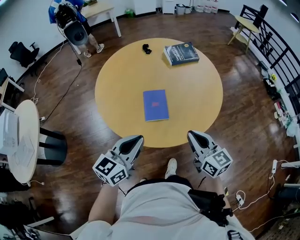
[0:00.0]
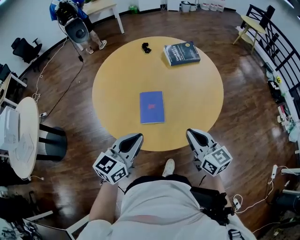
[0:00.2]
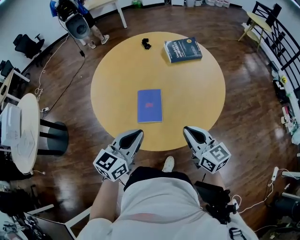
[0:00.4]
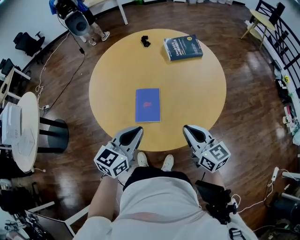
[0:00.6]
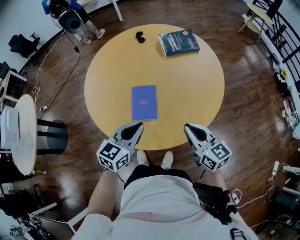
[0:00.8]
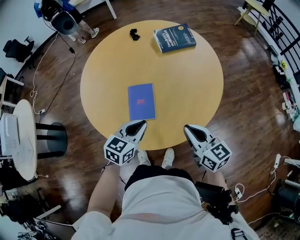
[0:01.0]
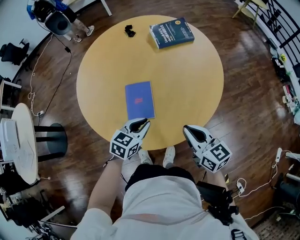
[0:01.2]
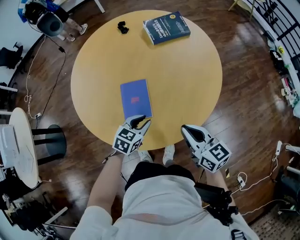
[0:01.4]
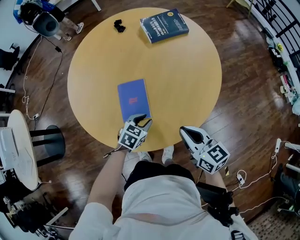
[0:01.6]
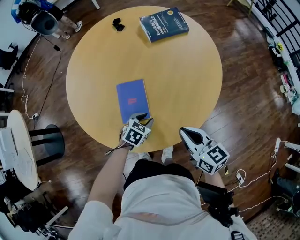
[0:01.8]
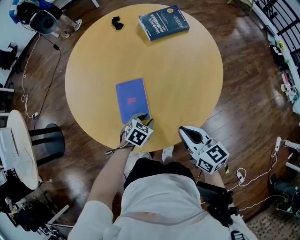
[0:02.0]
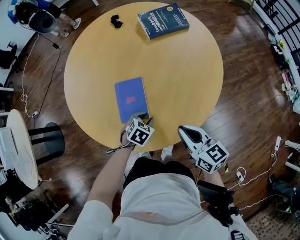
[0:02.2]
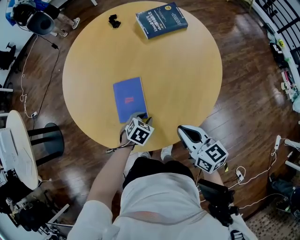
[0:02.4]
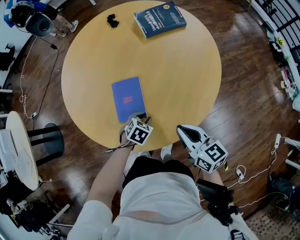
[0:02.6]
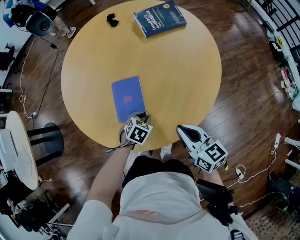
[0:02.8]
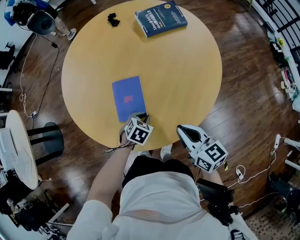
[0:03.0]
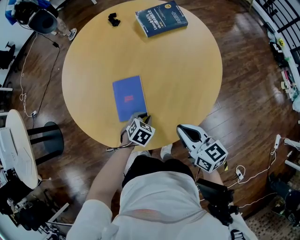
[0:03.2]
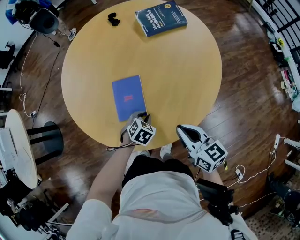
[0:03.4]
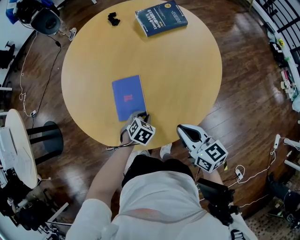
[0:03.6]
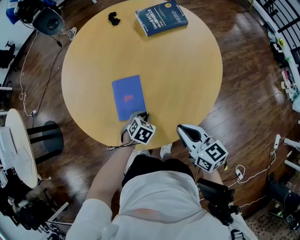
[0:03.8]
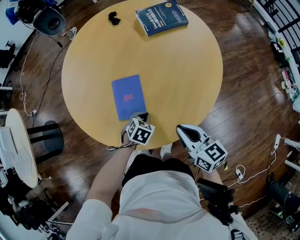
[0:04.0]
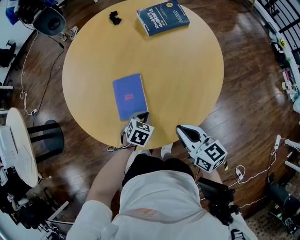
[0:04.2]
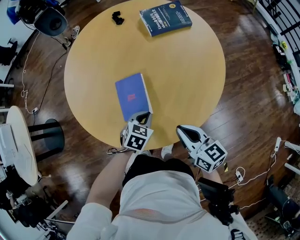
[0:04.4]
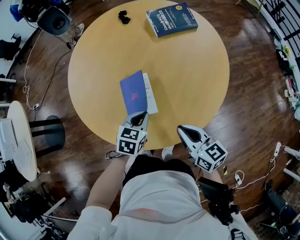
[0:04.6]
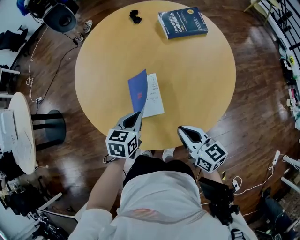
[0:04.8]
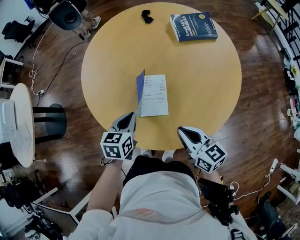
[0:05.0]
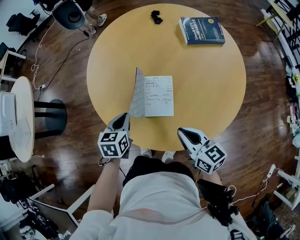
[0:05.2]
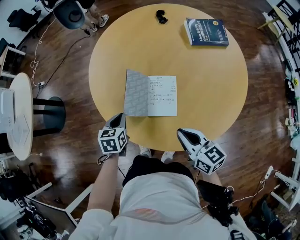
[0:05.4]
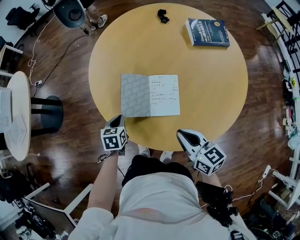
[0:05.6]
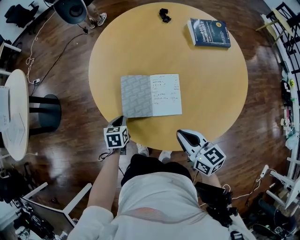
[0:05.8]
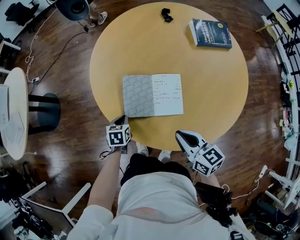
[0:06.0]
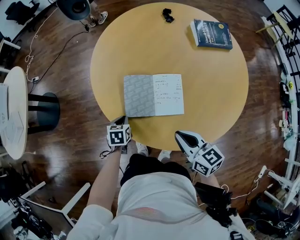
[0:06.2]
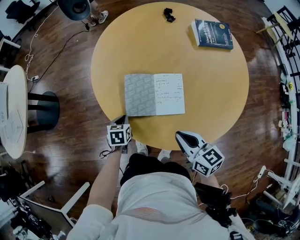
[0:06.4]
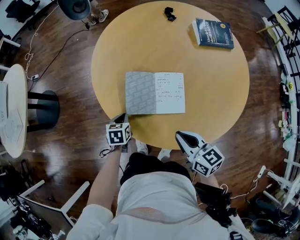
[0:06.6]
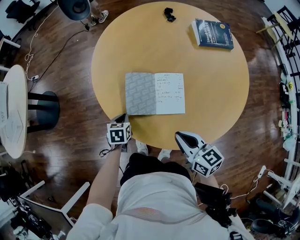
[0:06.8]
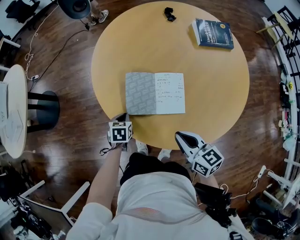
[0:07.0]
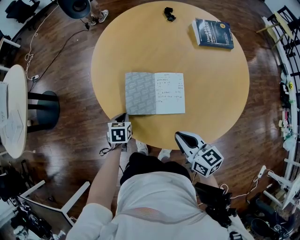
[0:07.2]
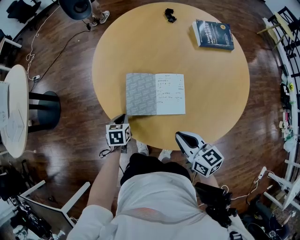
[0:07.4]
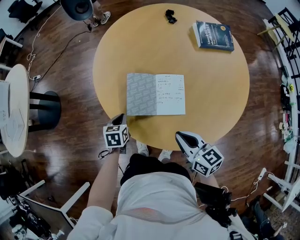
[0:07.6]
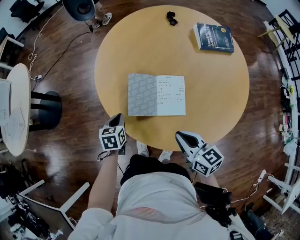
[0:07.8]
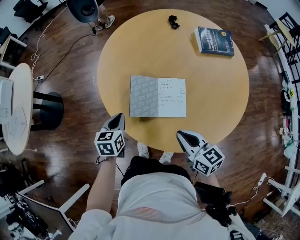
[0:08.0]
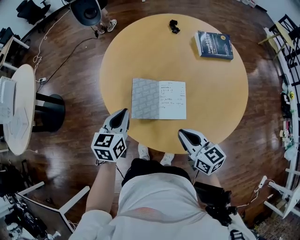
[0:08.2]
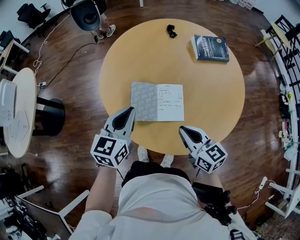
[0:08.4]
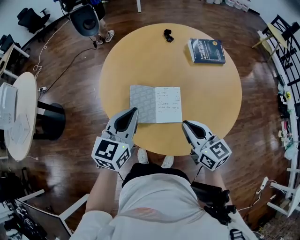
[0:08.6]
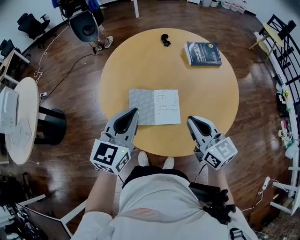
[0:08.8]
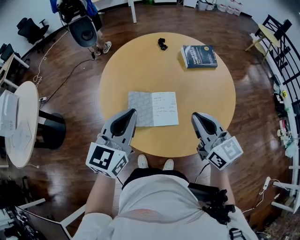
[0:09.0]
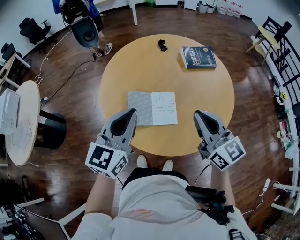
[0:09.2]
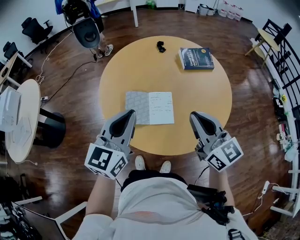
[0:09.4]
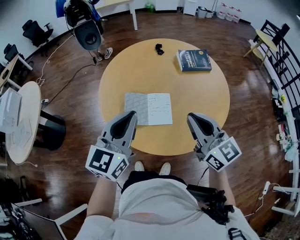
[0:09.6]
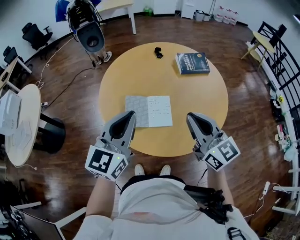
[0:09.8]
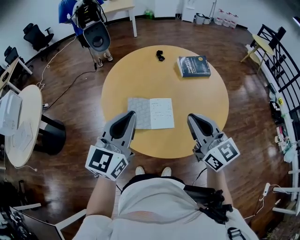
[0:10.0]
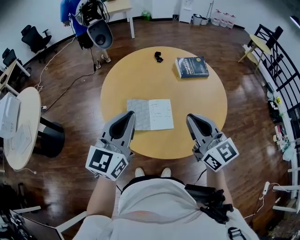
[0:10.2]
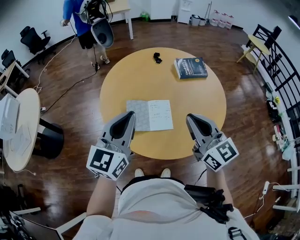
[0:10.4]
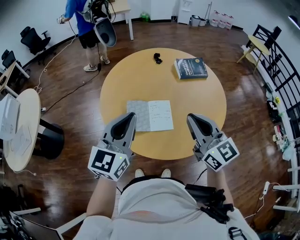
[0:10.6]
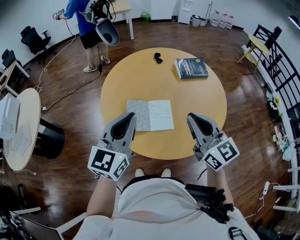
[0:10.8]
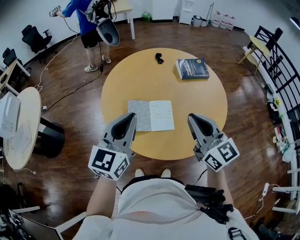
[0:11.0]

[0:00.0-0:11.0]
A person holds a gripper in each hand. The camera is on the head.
0:00.0 to 0:01.6: The left gripper shifts approximately 35 cm downward, forward and to the right, angles its fingers downward, by approximately 40 degrees, and opens; the right gripper goes some 15 cm downward, forward and to the right.
0:01.6 to 0:03.2: The grippers move only a little.
0:03.2 to 0:04.8: The left gripper shifts roughly 15 cm upward and to the left, and swivels some 40 degrees.
0:04.8 to 0:06.2: The left gripper goes approximately 25 cm to the left and downward, and changes its angle by some 30 degrees. The right gripper goes approximately 15 cm to the left.
0:06.2 to 0:07.8: The left gripper travels upward by some 5 cm.
0:07.8 to 0:09.4: The left gripper moves upward, about 35 cm, and points its fingers about 40 degrees further upward; the right gripper travels upward by roughly 25 cm, and rotates approximately 30 degrees.
0:09.4 to 0:11.0: The grippers make only small movements.

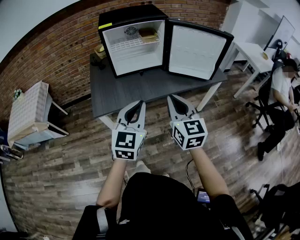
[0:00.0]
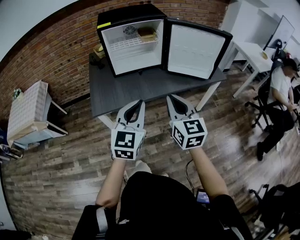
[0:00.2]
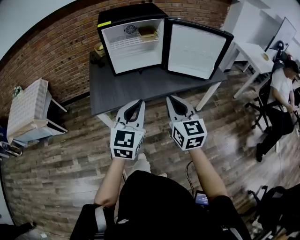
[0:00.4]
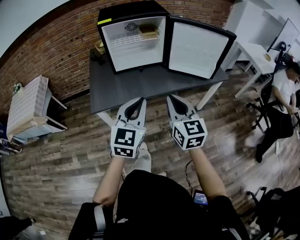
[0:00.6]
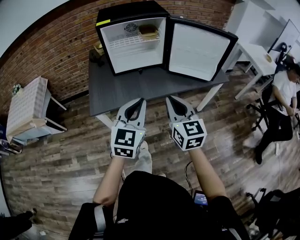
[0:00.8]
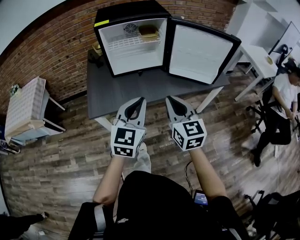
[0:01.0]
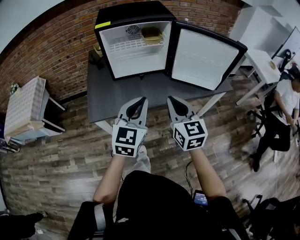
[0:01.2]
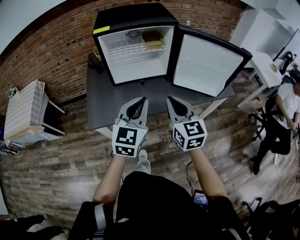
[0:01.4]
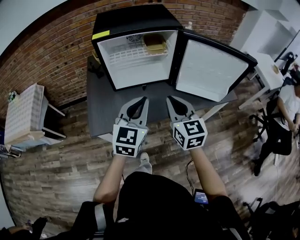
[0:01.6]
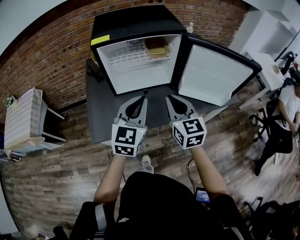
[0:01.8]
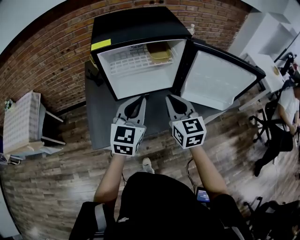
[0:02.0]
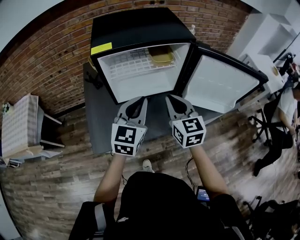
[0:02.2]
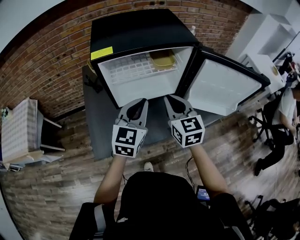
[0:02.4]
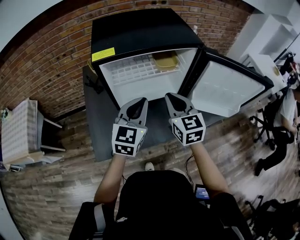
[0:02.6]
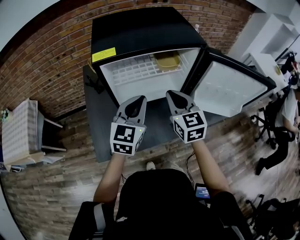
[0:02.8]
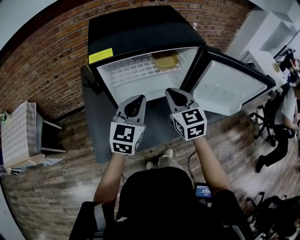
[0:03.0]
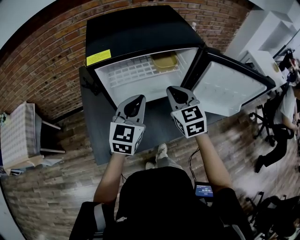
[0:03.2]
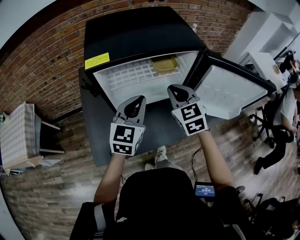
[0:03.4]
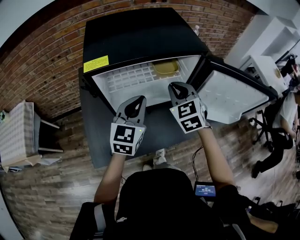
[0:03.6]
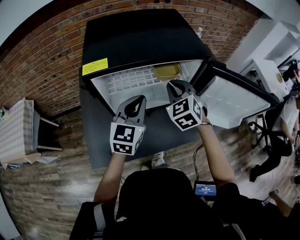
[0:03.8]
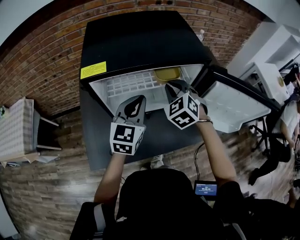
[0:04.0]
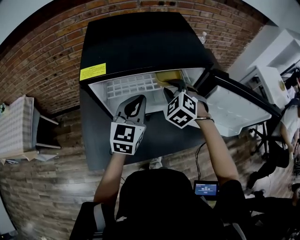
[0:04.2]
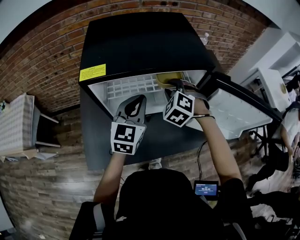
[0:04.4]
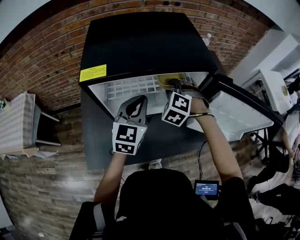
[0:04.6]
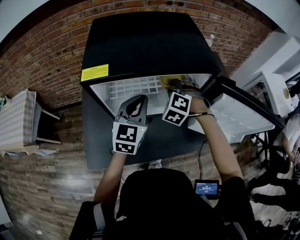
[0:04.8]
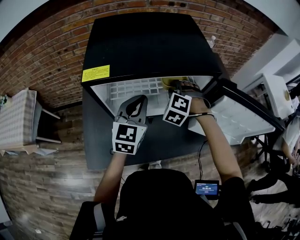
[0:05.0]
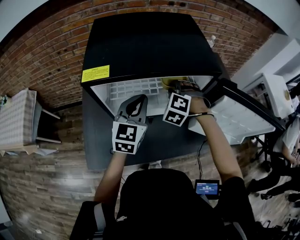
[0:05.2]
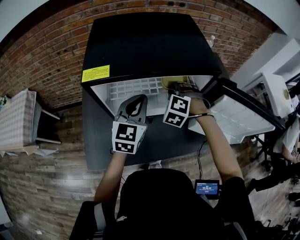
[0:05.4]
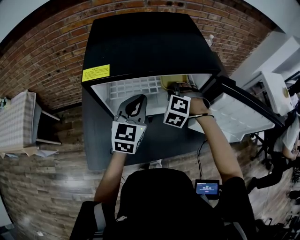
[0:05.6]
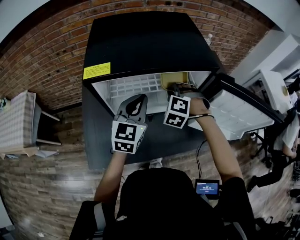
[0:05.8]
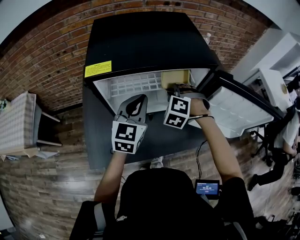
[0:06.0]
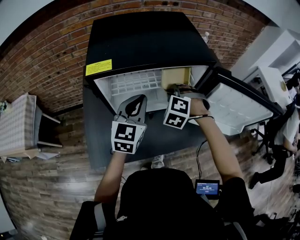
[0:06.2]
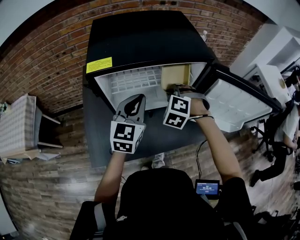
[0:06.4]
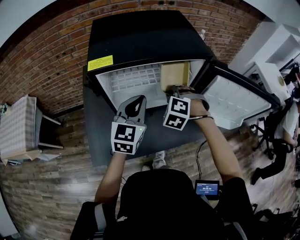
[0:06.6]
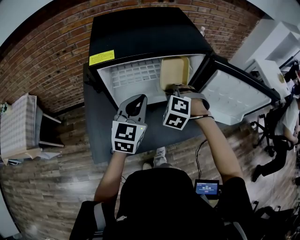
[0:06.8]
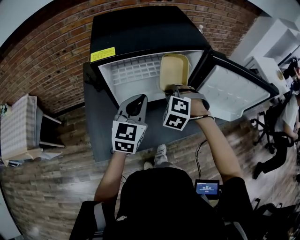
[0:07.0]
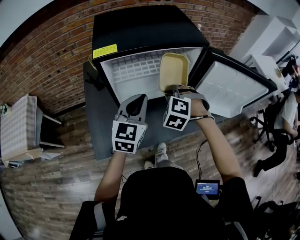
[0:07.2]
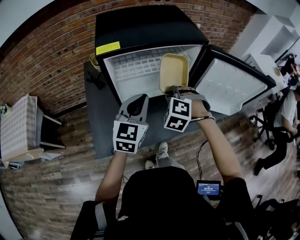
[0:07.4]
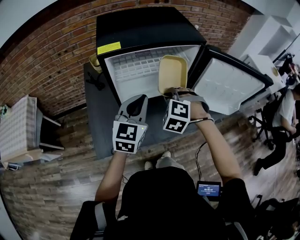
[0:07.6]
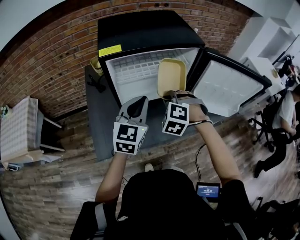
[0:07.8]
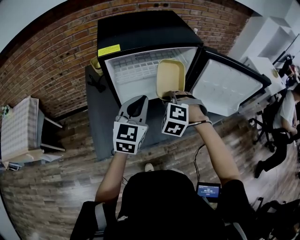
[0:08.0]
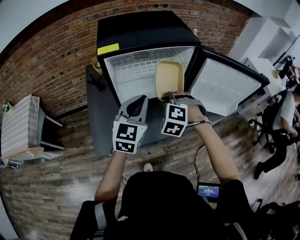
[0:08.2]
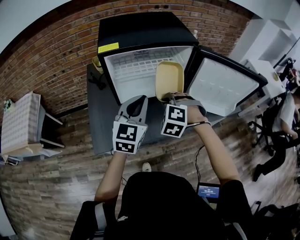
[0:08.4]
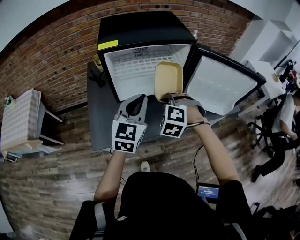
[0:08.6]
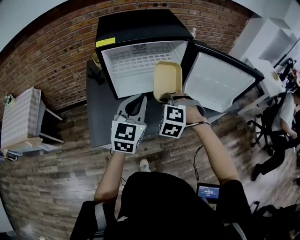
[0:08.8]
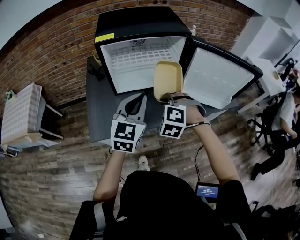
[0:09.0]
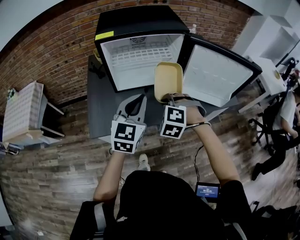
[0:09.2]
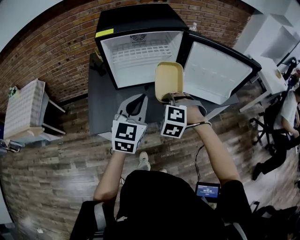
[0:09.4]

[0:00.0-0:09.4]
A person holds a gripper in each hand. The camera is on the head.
0:00.0 to 0:01.6: Both grippers move forward, roughly 20 cm.
0:01.6 to 0:03.2: Both grippers travel together forward, roughly 20 cm.
0:03.2 to 0:04.8: The right gripper moves forward and downward, roughly 15 cm, rotates around the line of its fingers by approximately 50 degrees, counterclockwise from behind, and opens; the left gripper goes roughly 10 cm forward.
0:04.8 to 0:06.2: The right gripper goes about 5 cm backward, and closes.
0:06.2 to 0:07.8: Both grippers travel together backward, roughly 15 cm.
0:07.8 to 0:09.4: Both grippers move backward and to the right, about 15 cm.

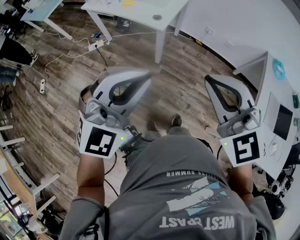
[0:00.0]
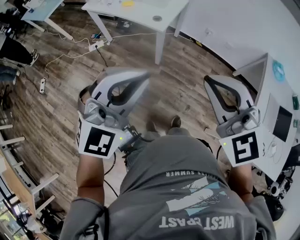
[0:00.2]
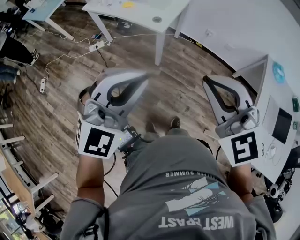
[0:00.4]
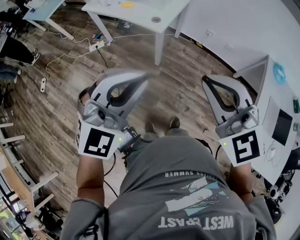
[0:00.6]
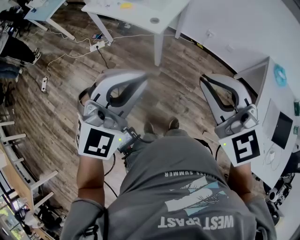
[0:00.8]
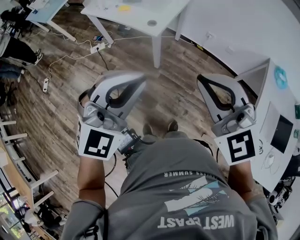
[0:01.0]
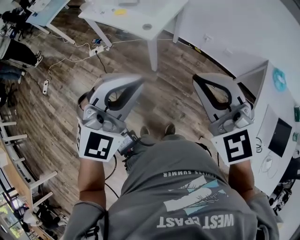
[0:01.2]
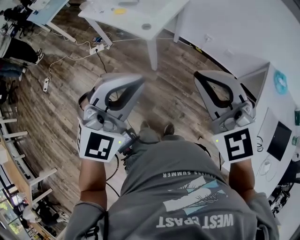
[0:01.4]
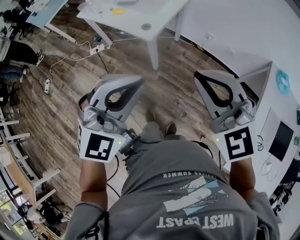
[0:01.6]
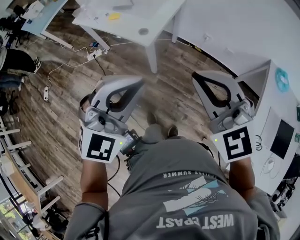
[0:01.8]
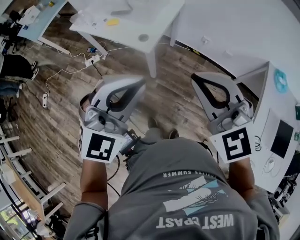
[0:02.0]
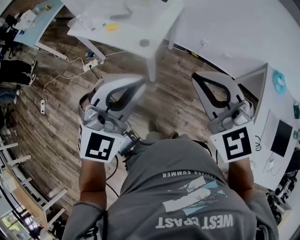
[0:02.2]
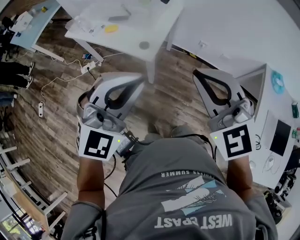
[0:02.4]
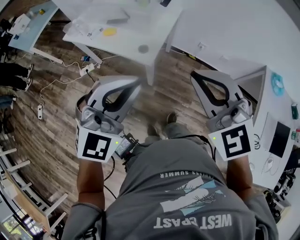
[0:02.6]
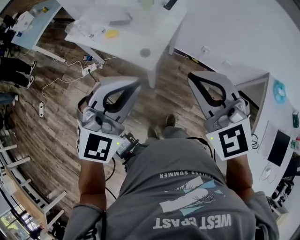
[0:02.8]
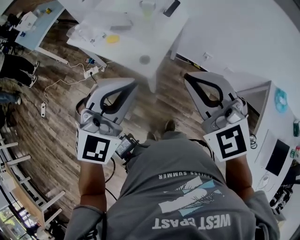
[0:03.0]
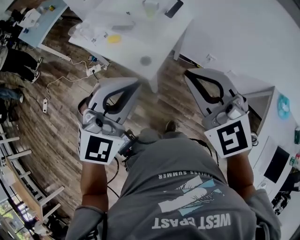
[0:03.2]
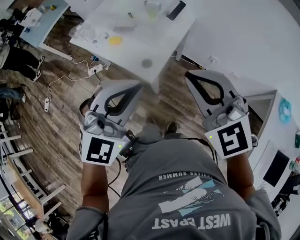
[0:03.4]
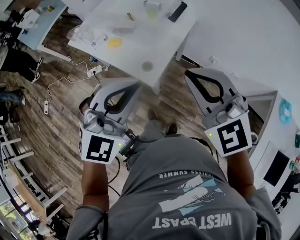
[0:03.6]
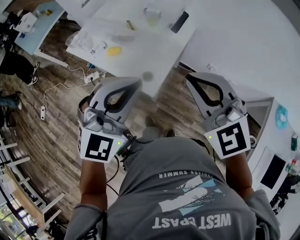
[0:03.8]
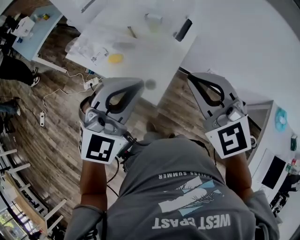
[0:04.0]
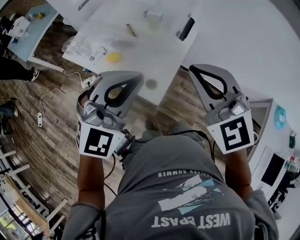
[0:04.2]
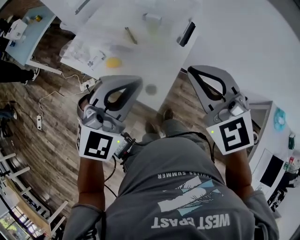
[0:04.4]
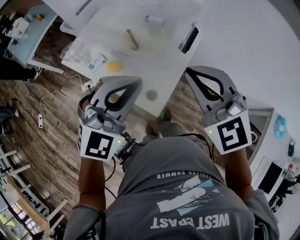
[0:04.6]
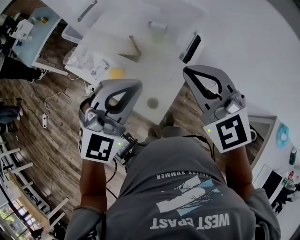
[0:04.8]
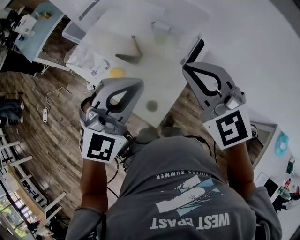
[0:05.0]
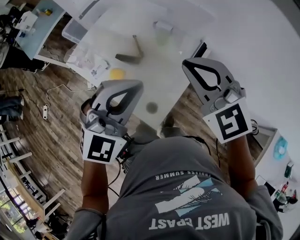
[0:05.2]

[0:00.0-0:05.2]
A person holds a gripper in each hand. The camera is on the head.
0:00.0 to 0:01.8: Both grippers travel together forward and to the right, roughly 15 cm.
0:01.8 to 0:03.4: The two grippers go about 25 cm forward.
0:03.4 to 0:05.2: The grippers both shift forward by roughly 30 cm.
